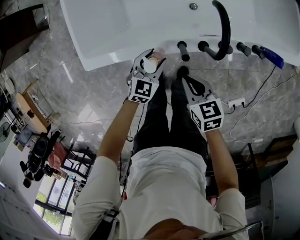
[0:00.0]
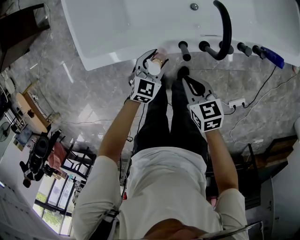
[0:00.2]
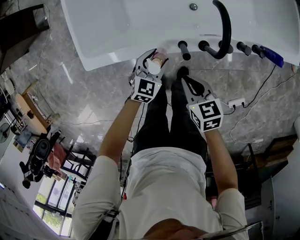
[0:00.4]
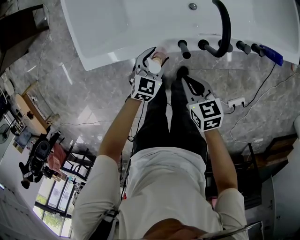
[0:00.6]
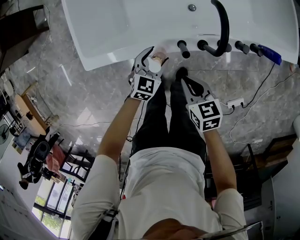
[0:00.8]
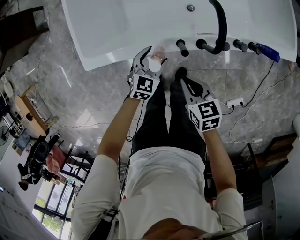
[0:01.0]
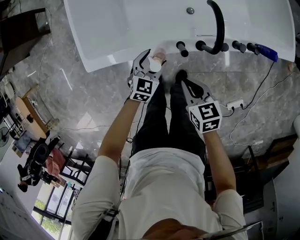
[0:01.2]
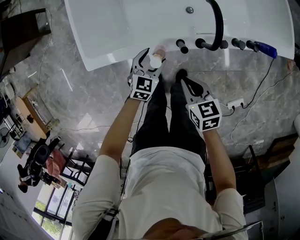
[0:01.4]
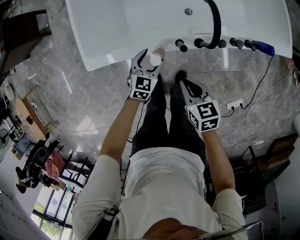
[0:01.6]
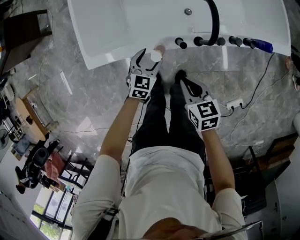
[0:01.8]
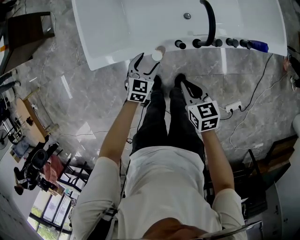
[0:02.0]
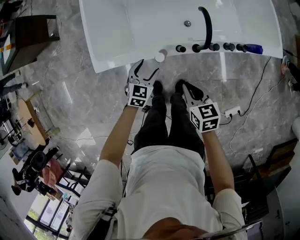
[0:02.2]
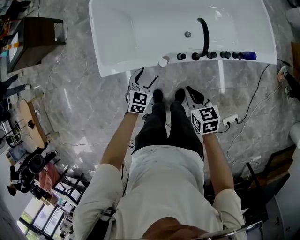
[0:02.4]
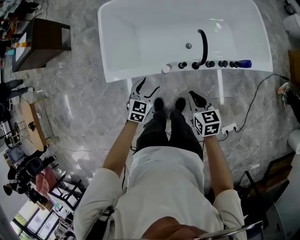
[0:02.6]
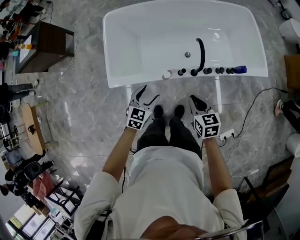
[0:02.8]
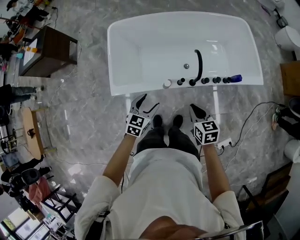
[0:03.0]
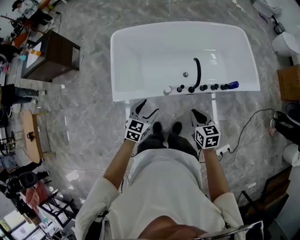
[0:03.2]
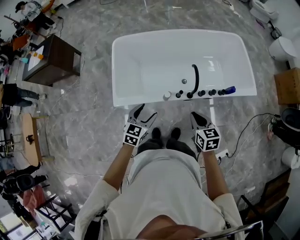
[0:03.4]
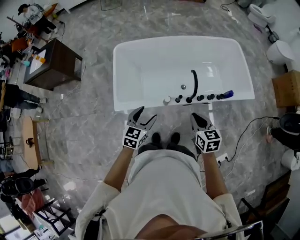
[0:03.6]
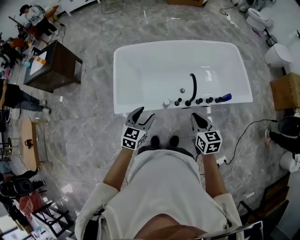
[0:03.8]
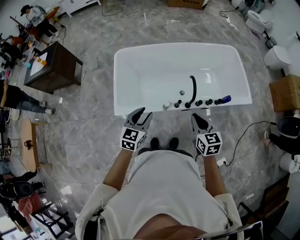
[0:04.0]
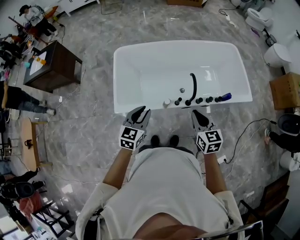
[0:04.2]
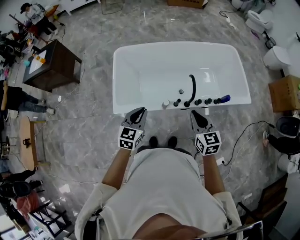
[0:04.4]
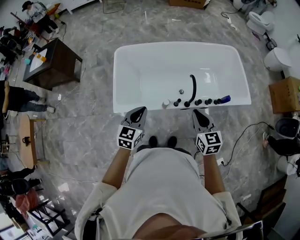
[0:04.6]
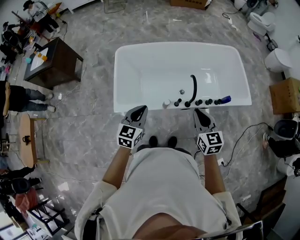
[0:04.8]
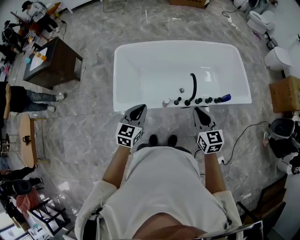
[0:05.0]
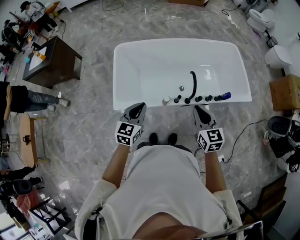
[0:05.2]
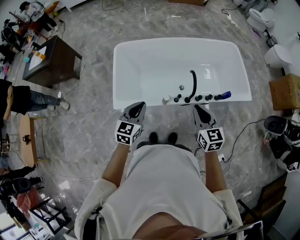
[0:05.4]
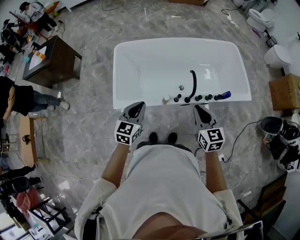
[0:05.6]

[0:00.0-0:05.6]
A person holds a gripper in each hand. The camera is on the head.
0:00.0 to 0:01.4: The grippers stay close to where they were, moving slightly.
0:01.4 to 0:02.8: The right gripper is displaced upward by about 20 cm; the left gripper travels upward and backward by some 25 cm.
0:02.8 to 0:04.2: The two grippers go roughly 20 cm upward. The left gripper closes.
0:04.2 to 0:05.6: The grippers move only a little.

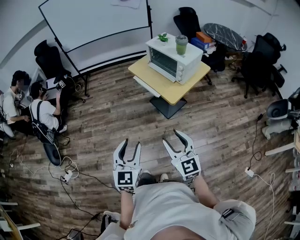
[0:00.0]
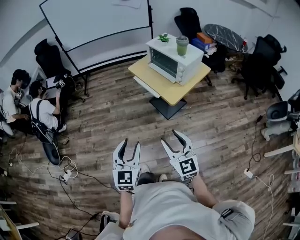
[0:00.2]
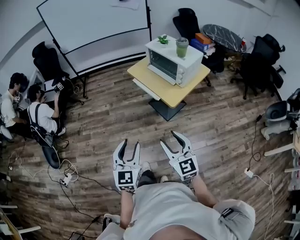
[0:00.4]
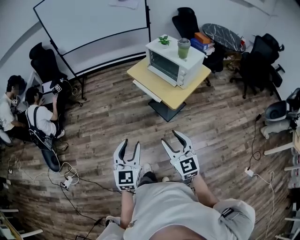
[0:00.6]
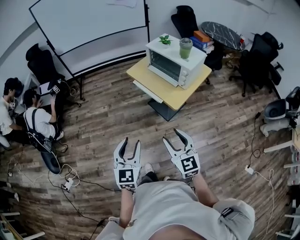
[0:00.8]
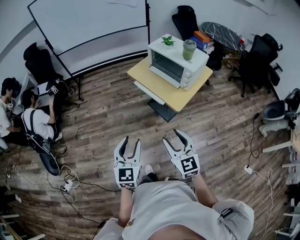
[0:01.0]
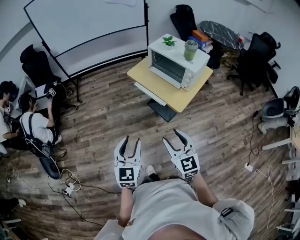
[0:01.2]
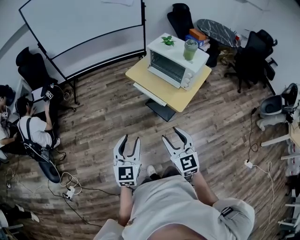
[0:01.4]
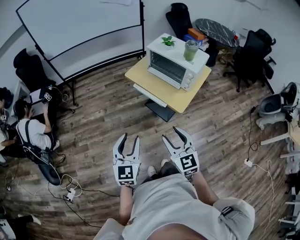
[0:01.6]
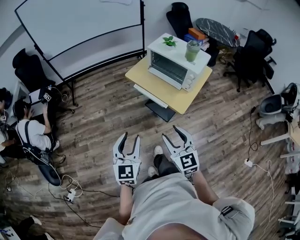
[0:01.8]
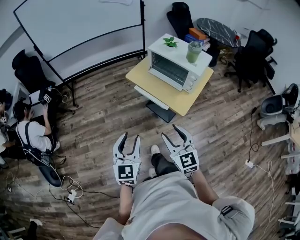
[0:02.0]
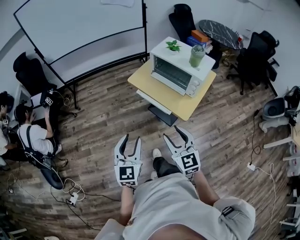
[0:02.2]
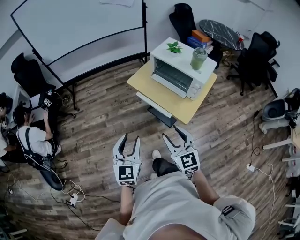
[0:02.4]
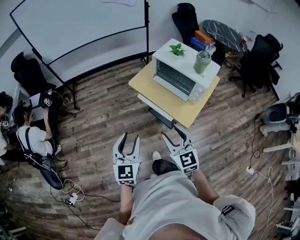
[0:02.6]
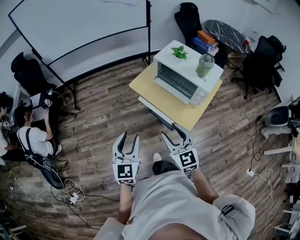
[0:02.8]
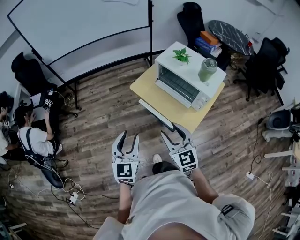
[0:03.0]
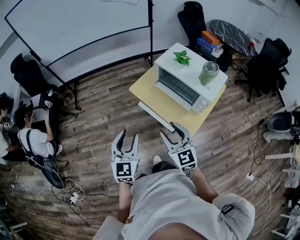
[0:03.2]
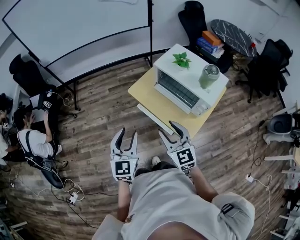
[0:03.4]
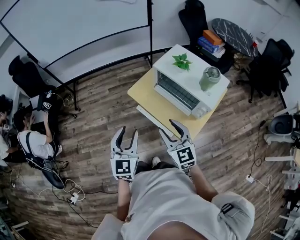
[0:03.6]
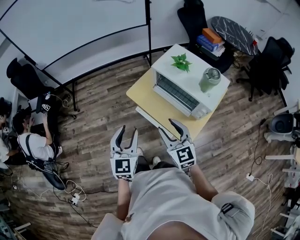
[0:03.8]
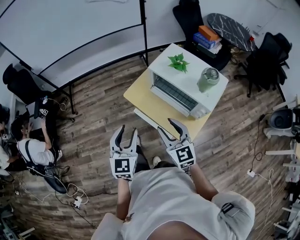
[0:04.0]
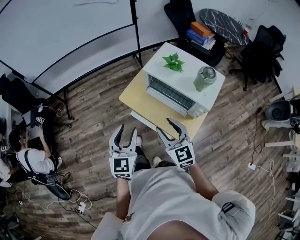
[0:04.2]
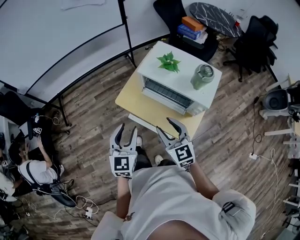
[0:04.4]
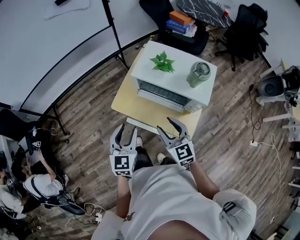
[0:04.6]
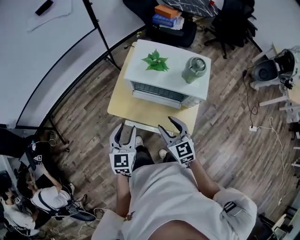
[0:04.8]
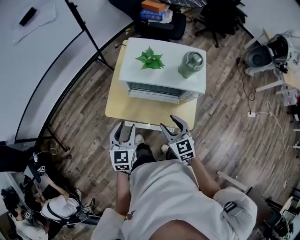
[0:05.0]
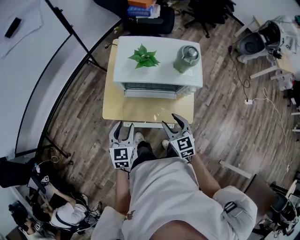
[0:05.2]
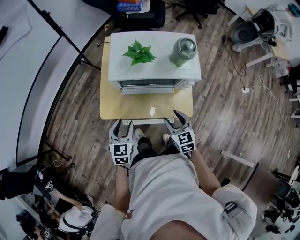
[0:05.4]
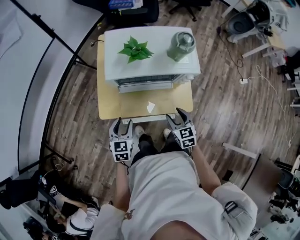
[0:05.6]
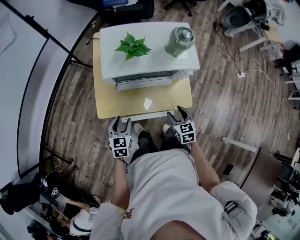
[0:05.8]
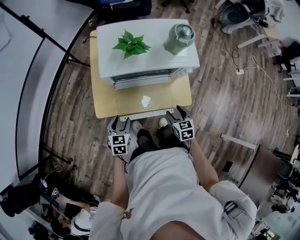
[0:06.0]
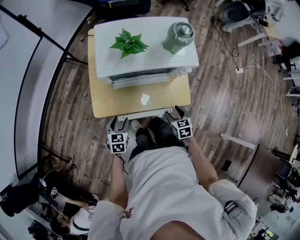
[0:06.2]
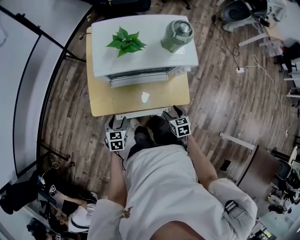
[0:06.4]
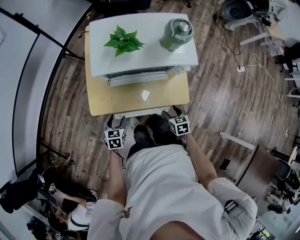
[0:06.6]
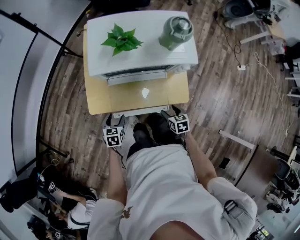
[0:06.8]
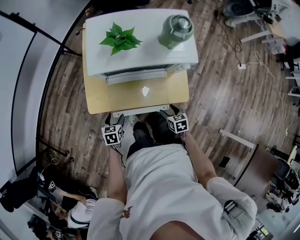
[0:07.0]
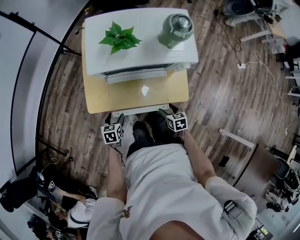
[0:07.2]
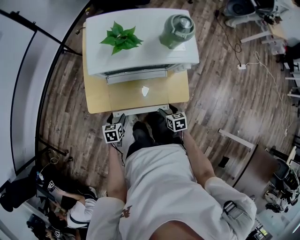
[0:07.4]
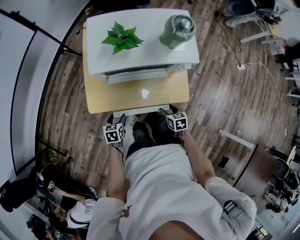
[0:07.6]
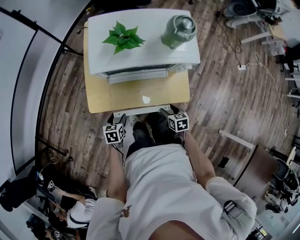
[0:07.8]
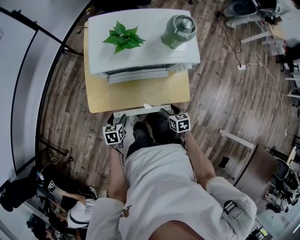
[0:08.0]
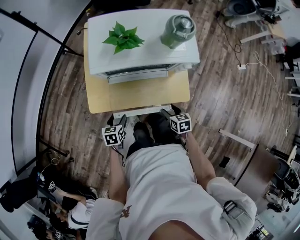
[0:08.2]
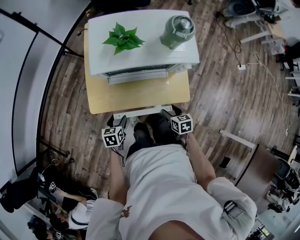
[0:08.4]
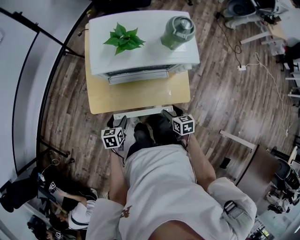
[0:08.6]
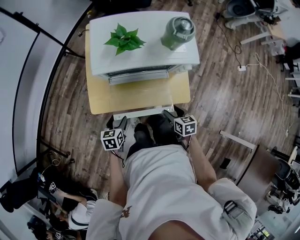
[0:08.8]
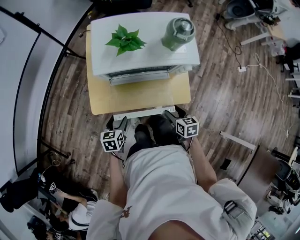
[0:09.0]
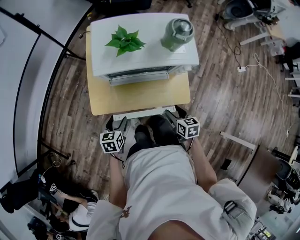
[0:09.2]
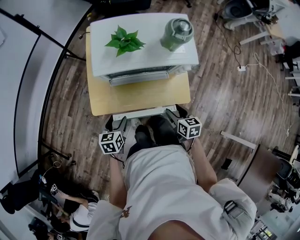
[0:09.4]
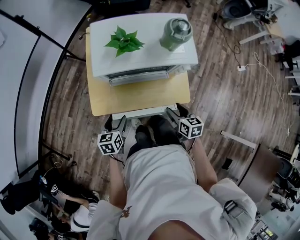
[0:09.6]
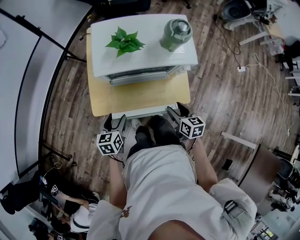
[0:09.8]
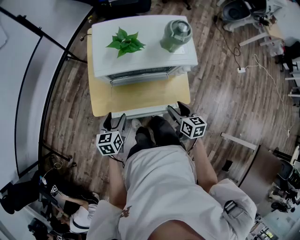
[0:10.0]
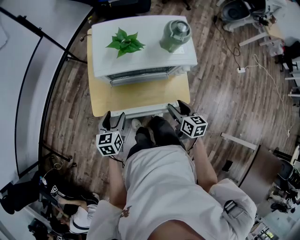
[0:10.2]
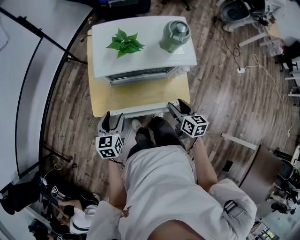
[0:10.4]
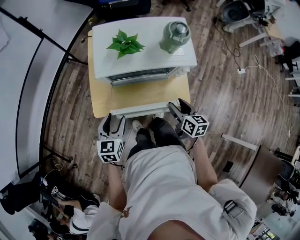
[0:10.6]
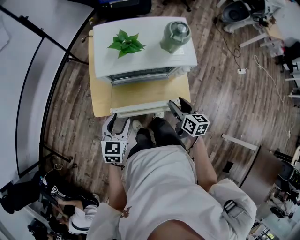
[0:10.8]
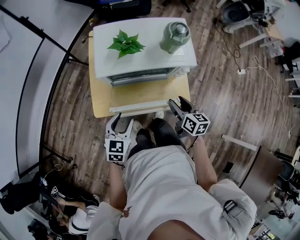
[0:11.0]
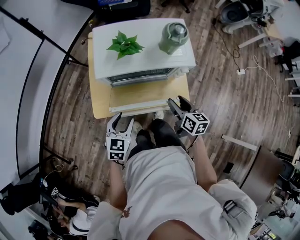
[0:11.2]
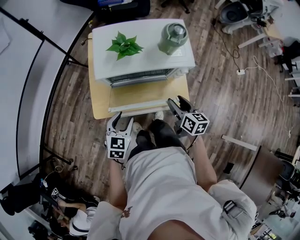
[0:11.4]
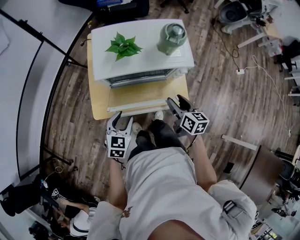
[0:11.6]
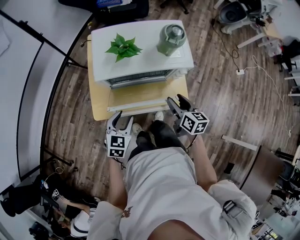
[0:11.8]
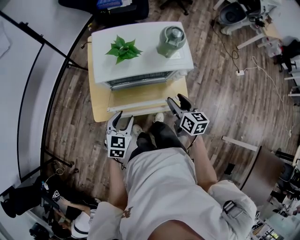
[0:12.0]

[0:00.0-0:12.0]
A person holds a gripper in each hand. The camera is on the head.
0:00.0 to 0:01.6: The grippers both shift forward and to the left by roughly 20 cm.
0:01.6 to 0:03.0: Both grippers move forward, some 20 cm.
0:03.0 to 0:04.4: Both grippers travel together forward, some 20 cm.
0:04.4 to 0:06.0: The two grippers go roughly 25 cm downward. The left gripper changes its angle by approximately 40 degrees. The right gripper tips its fingers downward by approximately 30 degrees.
0:06.0 to 0:07.6: The grippers both shift downward by about 10 cm. The left gripper rotates about 20 degrees.
0:07.6 to 0:09.0: Both grippers travel together upward, roughly 10 cm.
0:09.0 to 0:10.4: The grippers both shift upward by roughly 10 cm.
0:10.4 to 0:12.0: The left gripper heads to the right, covering about 5 cm, and turns by some 20 degrees. Meanwhile the right gripper shifts by about 5 cm.

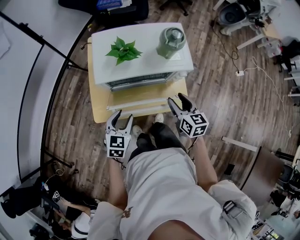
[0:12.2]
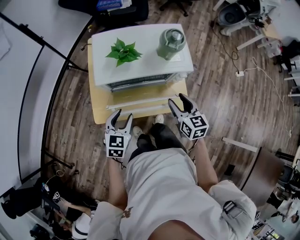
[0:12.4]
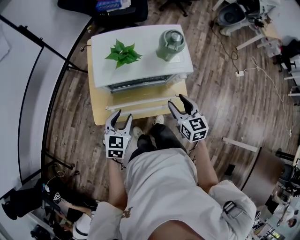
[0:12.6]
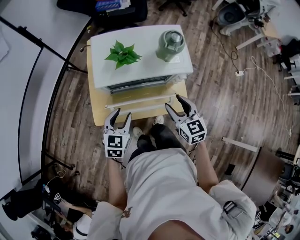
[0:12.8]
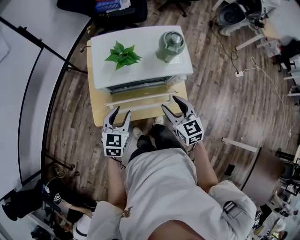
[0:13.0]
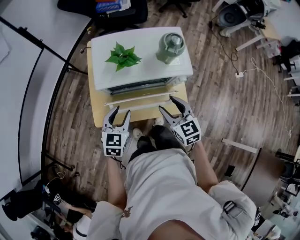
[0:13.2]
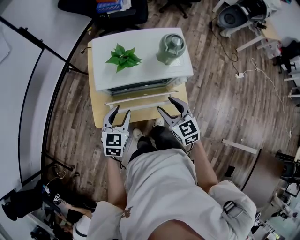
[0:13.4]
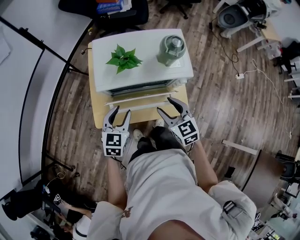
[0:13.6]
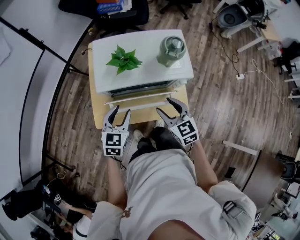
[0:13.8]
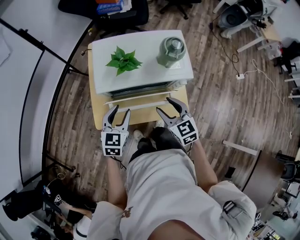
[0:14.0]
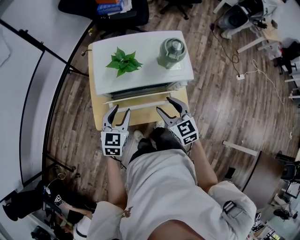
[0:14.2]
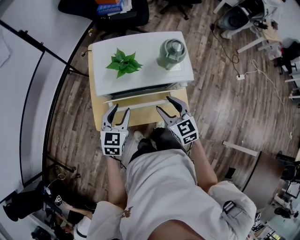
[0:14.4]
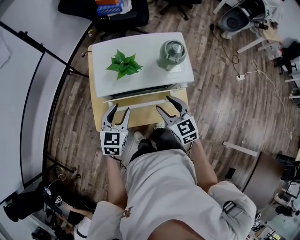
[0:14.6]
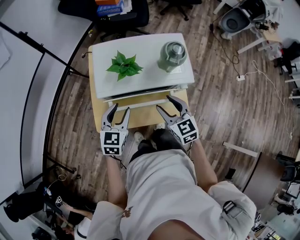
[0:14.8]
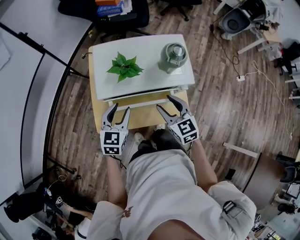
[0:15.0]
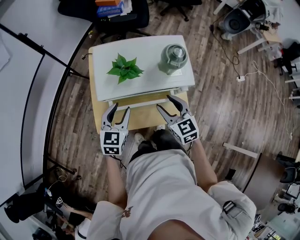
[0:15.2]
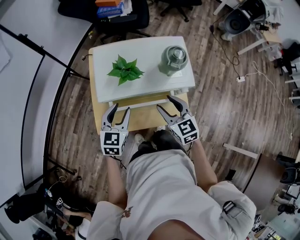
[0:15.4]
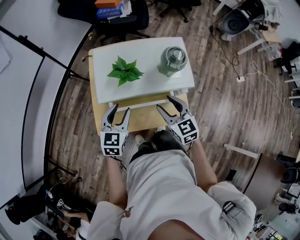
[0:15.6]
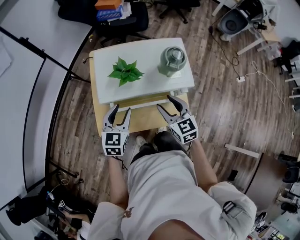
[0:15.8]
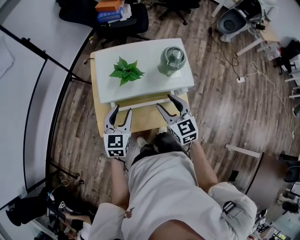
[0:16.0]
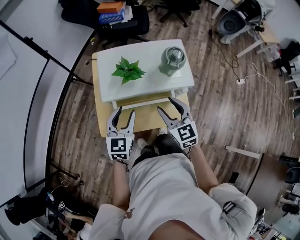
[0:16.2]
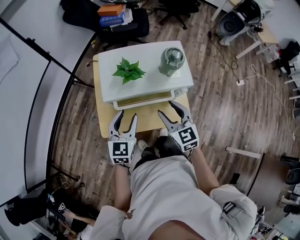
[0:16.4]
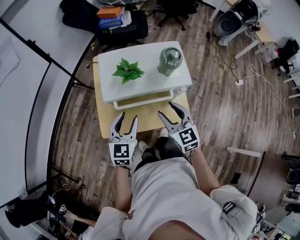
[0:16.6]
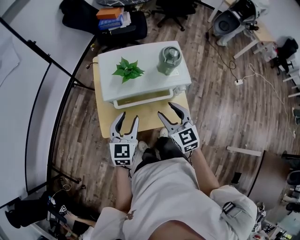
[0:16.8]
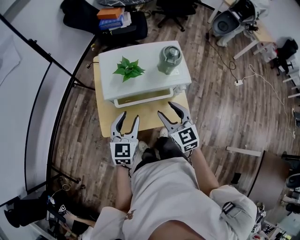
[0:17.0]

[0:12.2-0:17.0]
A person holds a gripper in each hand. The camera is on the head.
0:12.2 to 0:13.8: The right gripper goes approximately 5 cm to the left, and rotates approximately 30 degrees, while the left gripper goes roughly 5 cm forward.
0:13.8 to 0:15.4: The right gripper travels forward by approximately 5 cm, while the left gripper moves roughly 5 cm.
0:15.4 to 0:17.0: The left gripper travels backward and upward by about 10 cm. The right gripper travels backward by approximately 5 cm.

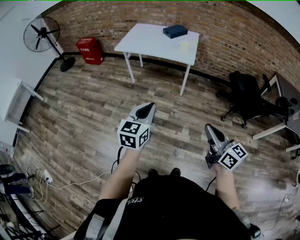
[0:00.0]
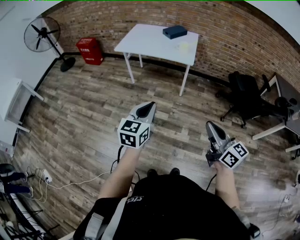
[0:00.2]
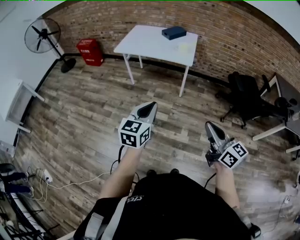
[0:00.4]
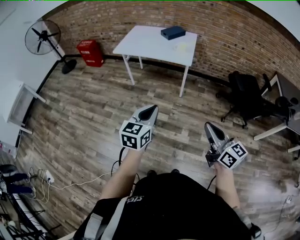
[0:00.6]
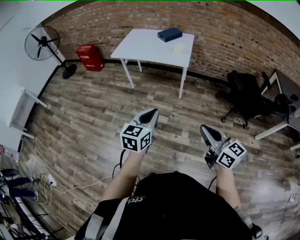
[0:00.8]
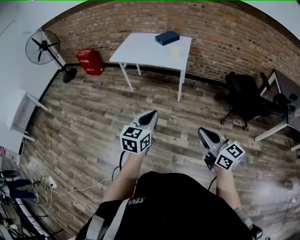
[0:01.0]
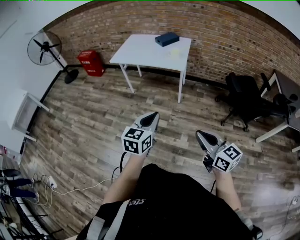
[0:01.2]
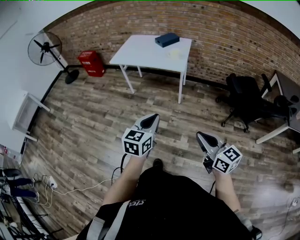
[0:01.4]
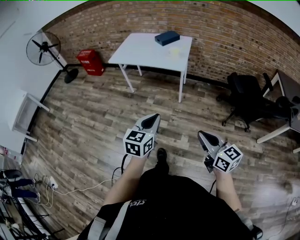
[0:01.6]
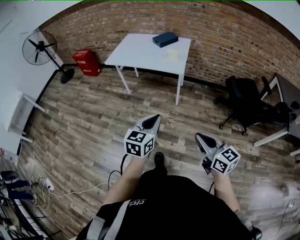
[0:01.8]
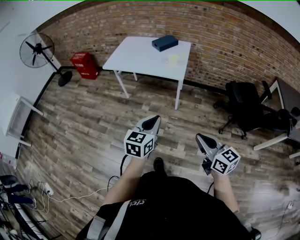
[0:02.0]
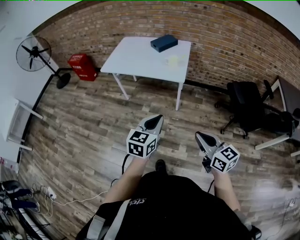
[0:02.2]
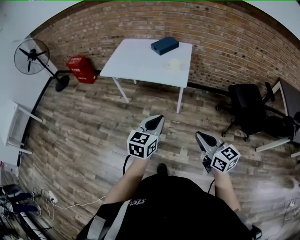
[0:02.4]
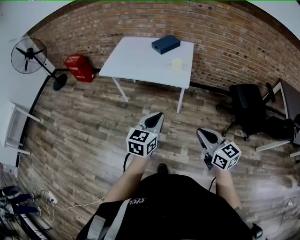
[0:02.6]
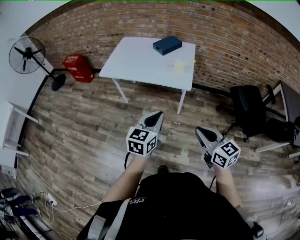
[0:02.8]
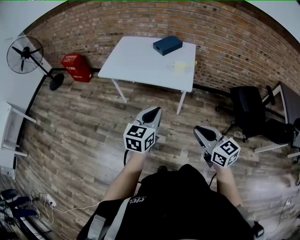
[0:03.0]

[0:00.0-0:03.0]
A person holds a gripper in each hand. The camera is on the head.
0:00.0 to 0:01.6: The left gripper moves to the right, about 15 cm. The right gripper goes about 10 cm to the right.
0:01.6 to 0:03.0: Both grippers travel together forward, approximately 30 cm.
